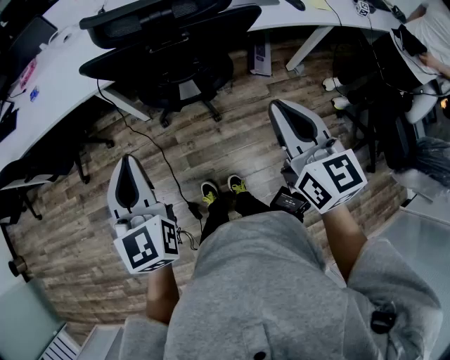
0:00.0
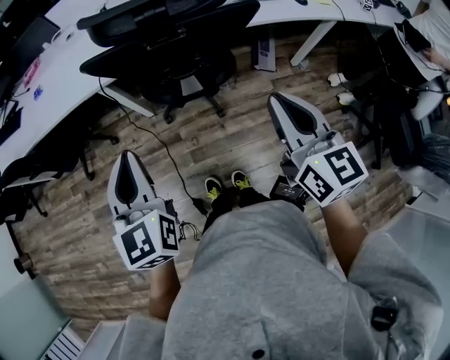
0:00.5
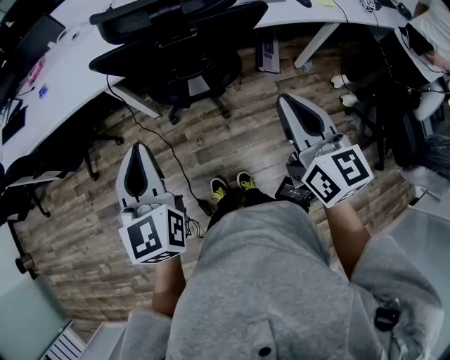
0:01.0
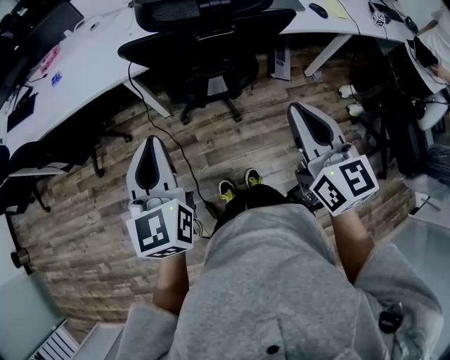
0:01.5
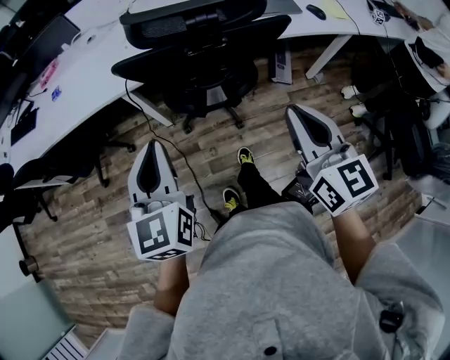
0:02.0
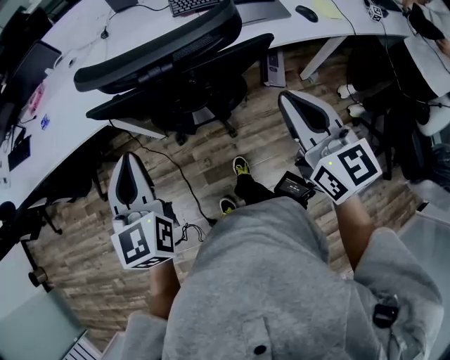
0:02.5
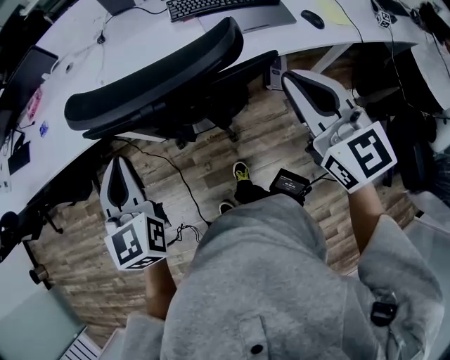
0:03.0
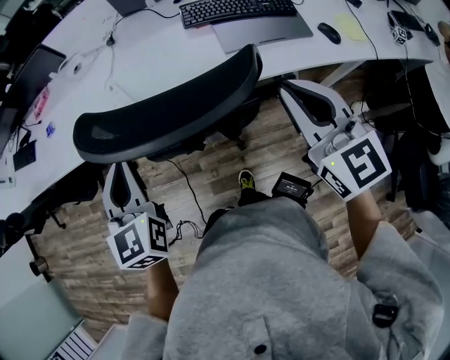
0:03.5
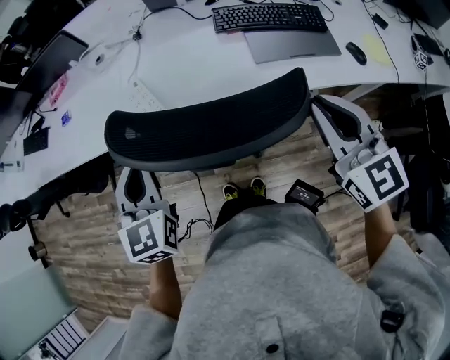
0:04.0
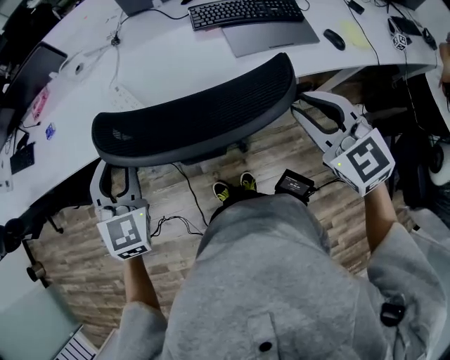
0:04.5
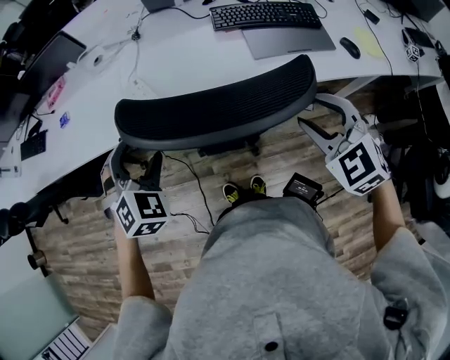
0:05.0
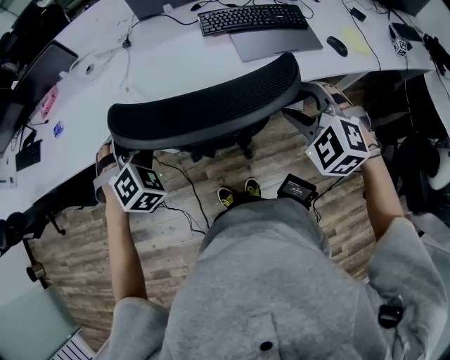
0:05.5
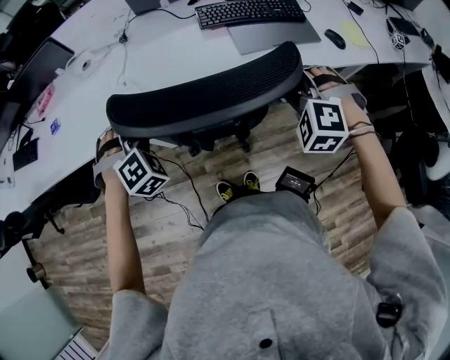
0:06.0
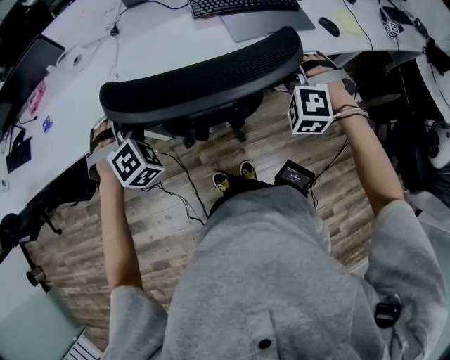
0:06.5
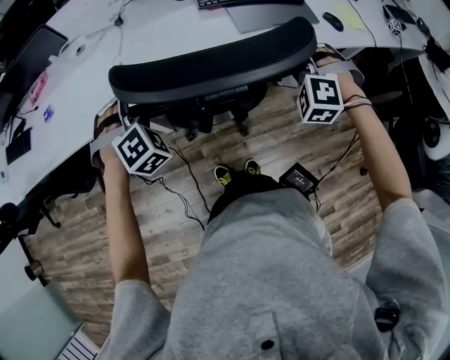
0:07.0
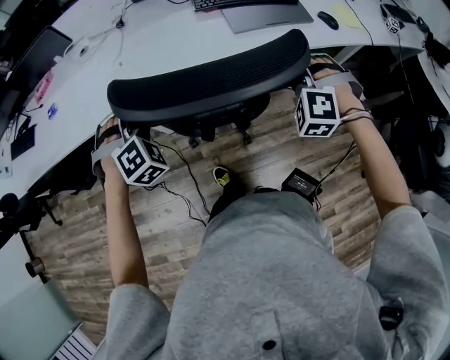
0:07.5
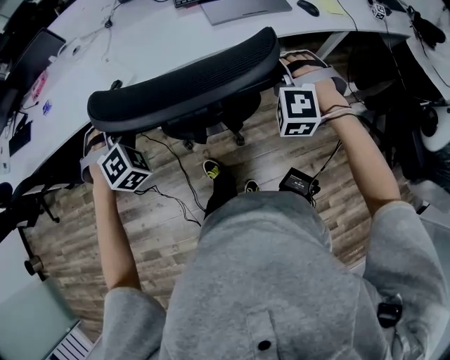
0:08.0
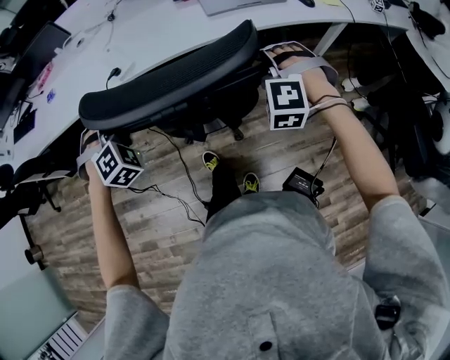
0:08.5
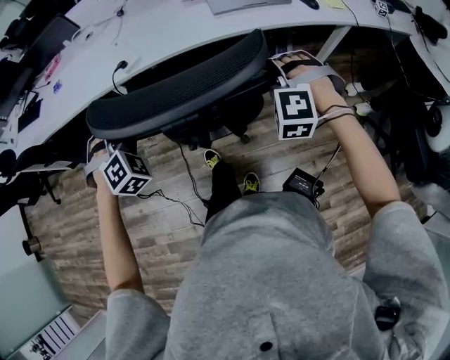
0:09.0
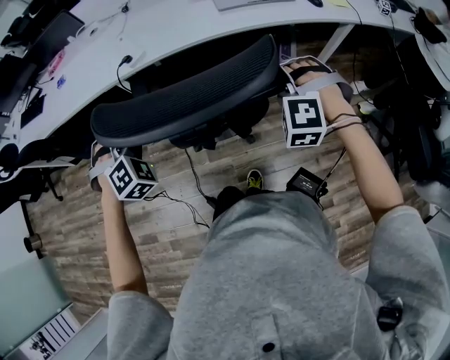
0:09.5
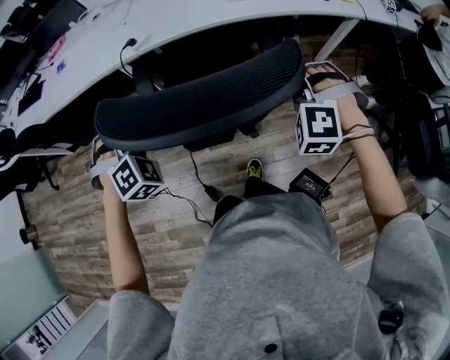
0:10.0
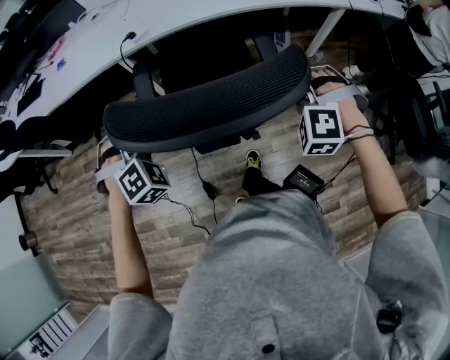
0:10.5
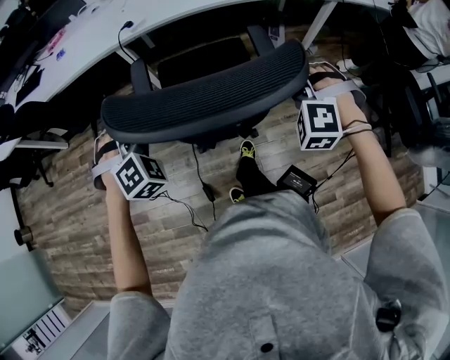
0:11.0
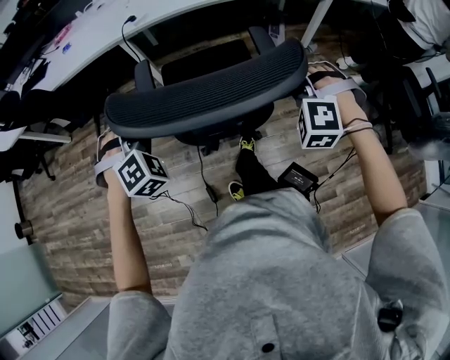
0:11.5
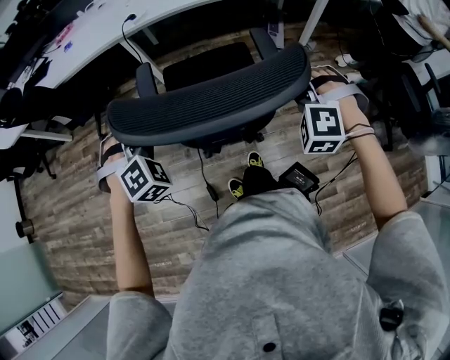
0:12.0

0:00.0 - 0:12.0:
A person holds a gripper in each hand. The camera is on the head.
0:02.0 - 0:04.0: The right gripper is displaced forward and to the right by about 25 cm, and swivels approximately 20 degrees. The left gripper heads forward, covering about 20 cm.
0:04.0 - 0:06.0: The right gripper is displaced downward by about 10 cm, rotates around the line of its fingers by approximately 60 degrees, counterclockwise from behind, and opens up, while the left gripper goes some 10 cm downward and forward, rotates around the line of its fingers by roughly 70 degrees, clockwise from behind, and opens up.
0:06.0 - 0:08.0: The grippers both shift backward by some 10 cm.
0:08.0 - 0:10.0: Both grippers travel together backward, approximately 15 cm.
0:10.0 - 0:12.0: Both grippers move backward, some 25 cm.

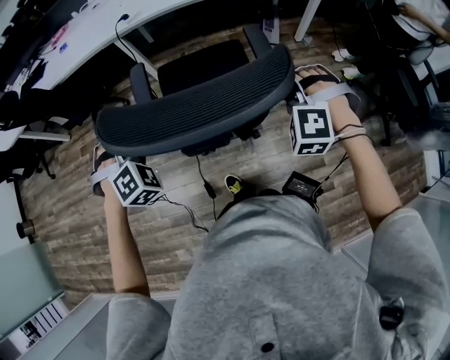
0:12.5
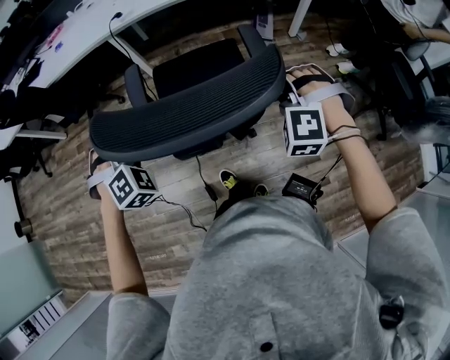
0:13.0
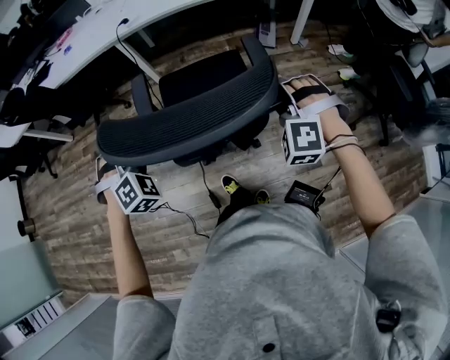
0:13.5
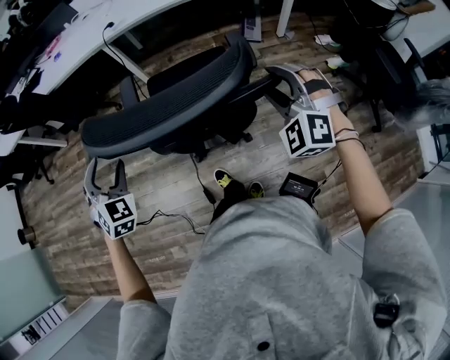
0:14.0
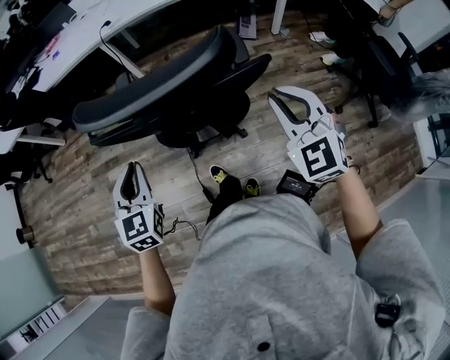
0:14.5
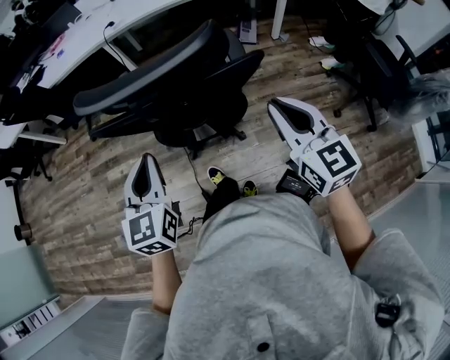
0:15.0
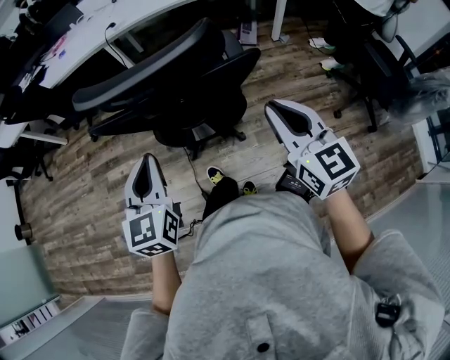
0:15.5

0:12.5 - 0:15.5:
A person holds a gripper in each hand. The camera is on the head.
0:12.5 - 0:14.0: Both grippers travel together backward, approximately 10 cm. The right gripper swivels approximately 30 degrees, and opens. Meanwhile the left gripper changes its angle by approximately 30 degrees.
0:14.0 - 0:15.5: The left gripper heads to the right and backward, covering some 20 cm, rotates around the line of its fingers by roughly 40 degrees, counterclockwise from behind, and closes, while the right gripper heads backward, covering about 15 cm, rolls clockwise, seen from behind, by approximately 70 degrees, and closes.

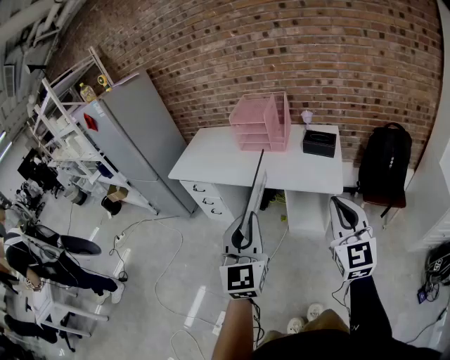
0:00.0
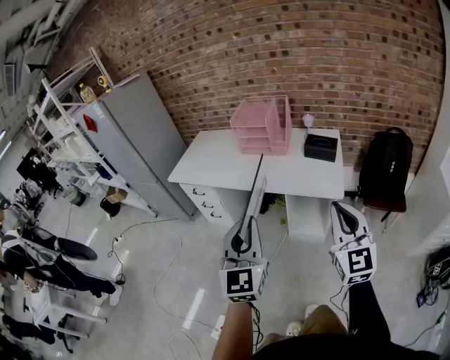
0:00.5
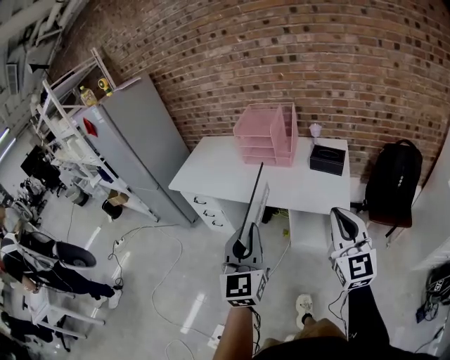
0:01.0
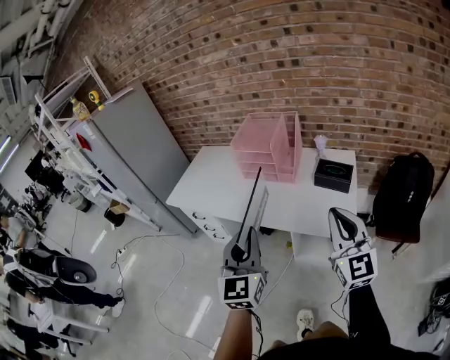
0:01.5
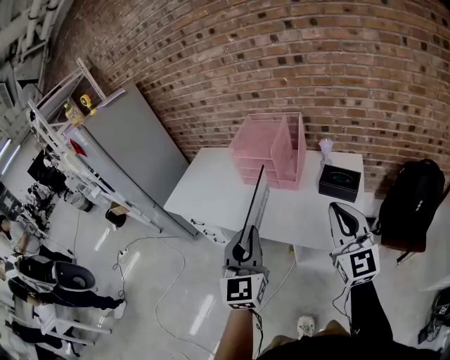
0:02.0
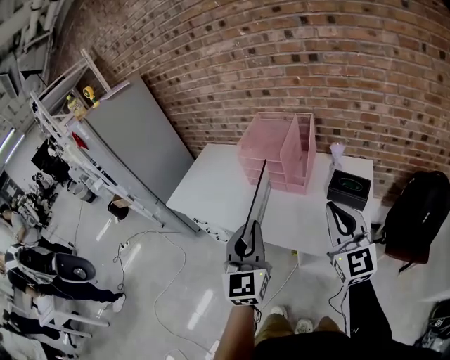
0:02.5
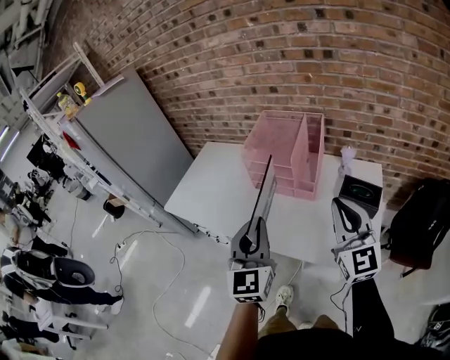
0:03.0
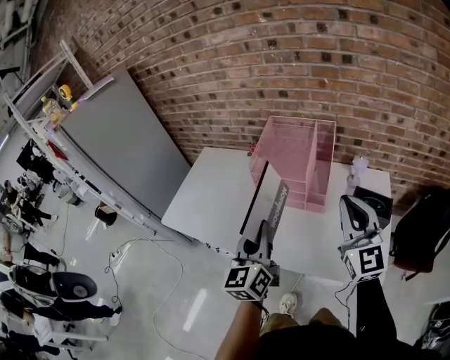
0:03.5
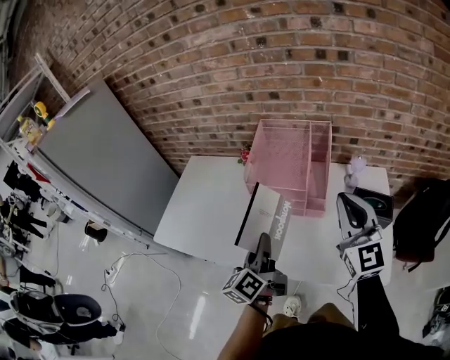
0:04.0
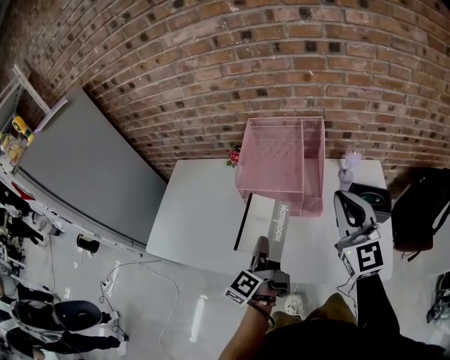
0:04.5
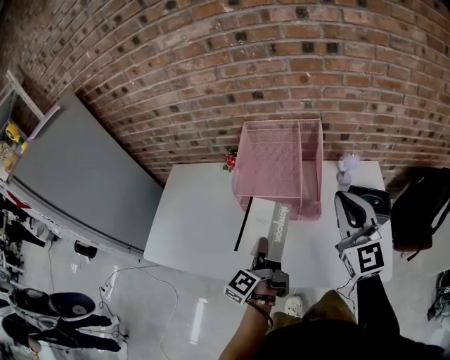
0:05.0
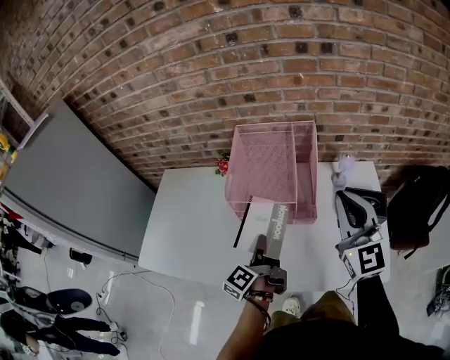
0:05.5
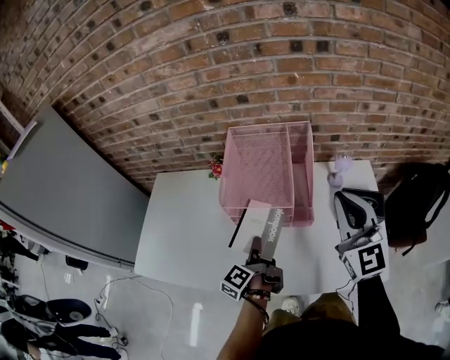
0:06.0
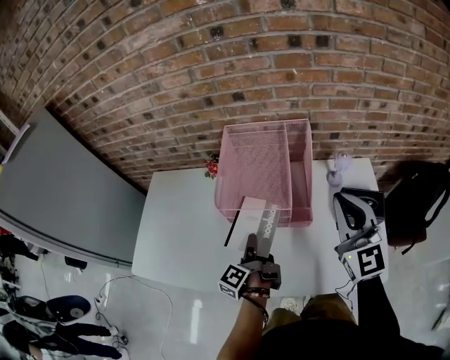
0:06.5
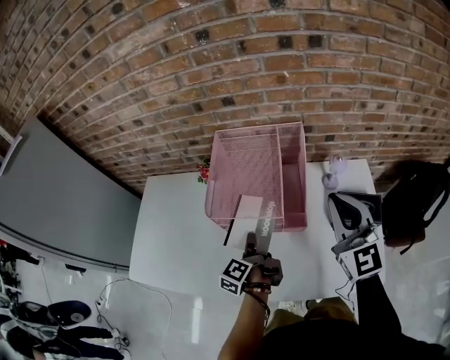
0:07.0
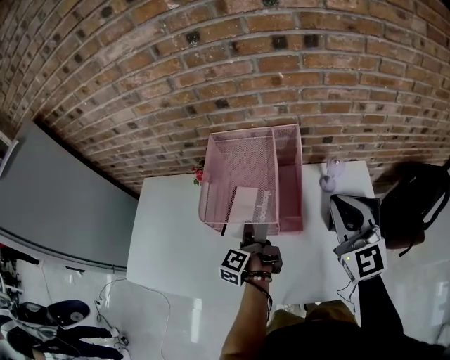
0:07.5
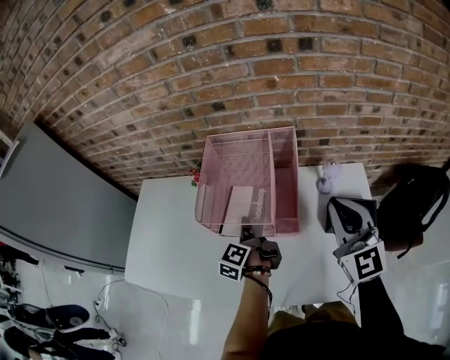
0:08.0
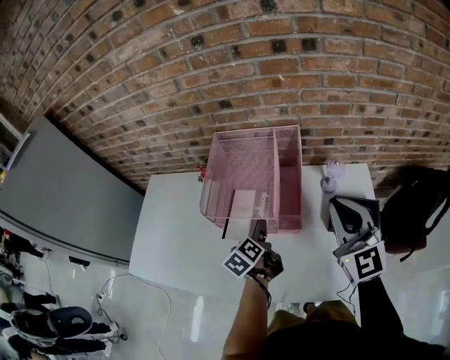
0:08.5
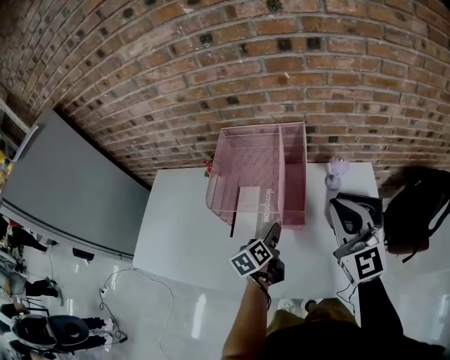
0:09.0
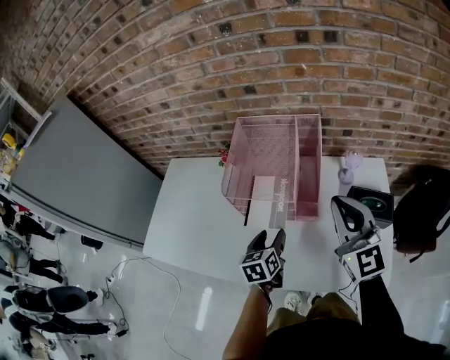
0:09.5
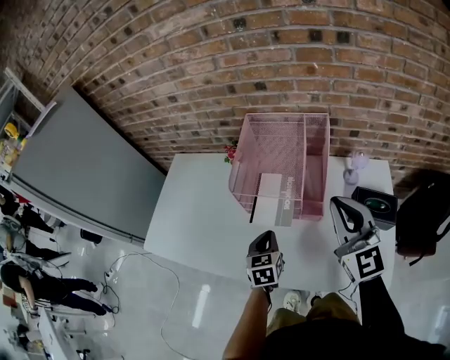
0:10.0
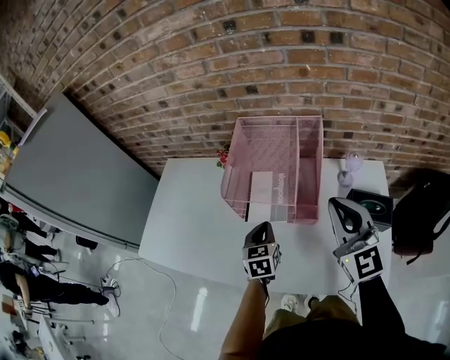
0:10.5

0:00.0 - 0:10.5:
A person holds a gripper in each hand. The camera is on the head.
0:00.0 - 0:02.0: Both grippers move forward, roughly 30 cm.
0:02.0 - 0:04.0: The right gripper shifts roughly 30 cm forward and to the left. Meanwhile the left gripper is displaced forward, downward and to the left by approximately 30 cm, and rolls counterclockwise, seen from behind, by some 60 degrees.
0:04.0 - 0:06.5: The right gripper moves forward, roughly 5 cm, while the left gripper heads forward and downward, covering roughly 15 cm, and turns by roughly 30 degrees.
0:06.5 - 0:08.5: The left gripper travels to the right and forward by about 10 cm, swivels approximately 40 degrees, and opens.
0:08.5 - 0:10.5: The left gripper rolls clockwise, seen from behind, by about 40 degrees, and closes, while the right gripper shifts some 5 cm to the left.

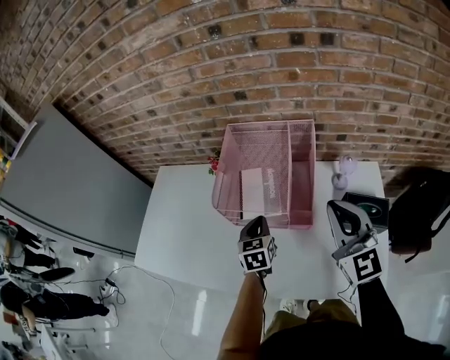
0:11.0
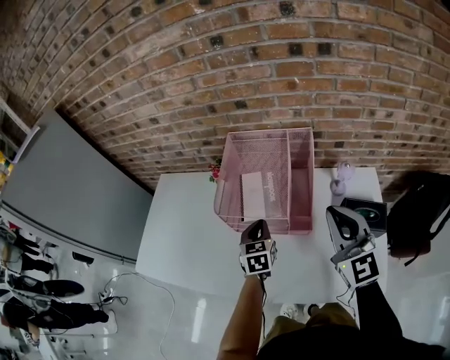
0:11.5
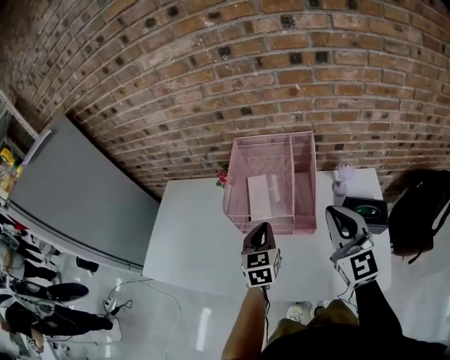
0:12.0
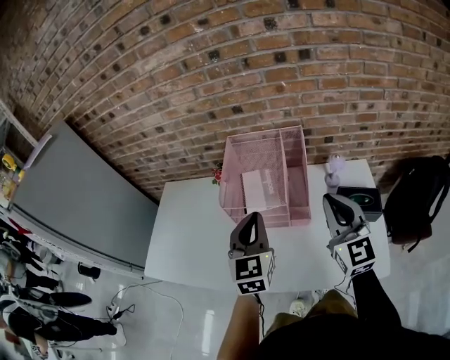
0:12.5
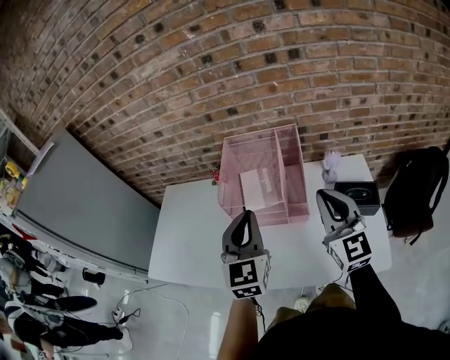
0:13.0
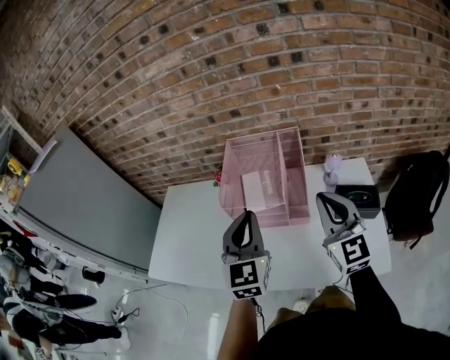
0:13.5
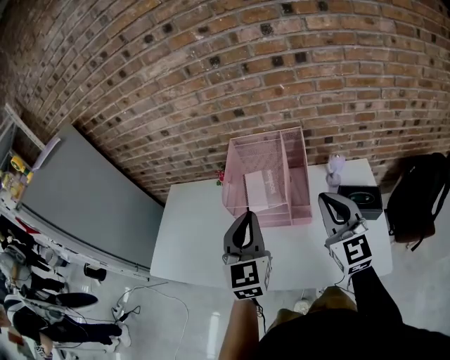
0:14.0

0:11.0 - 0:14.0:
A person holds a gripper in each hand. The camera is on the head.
0:11.0 - 0:12.5: The left gripper moves upward and backward, about 20 cm, and rotates roughly 30 degrees.
0:12.5 - 0:14.0: The left gripper ends up roughly 5 cm from where it was.
